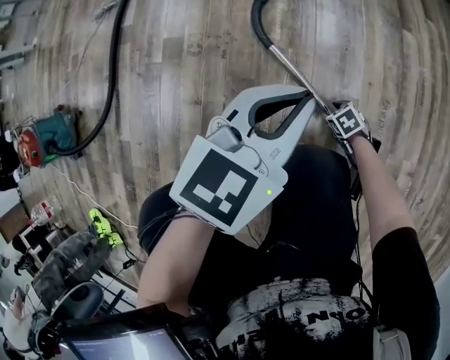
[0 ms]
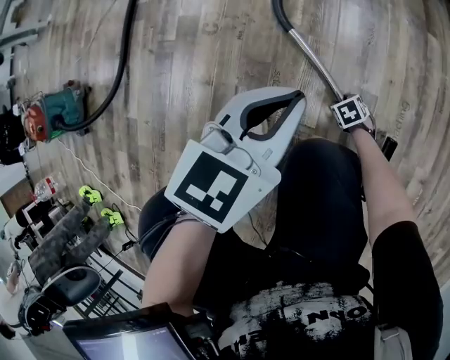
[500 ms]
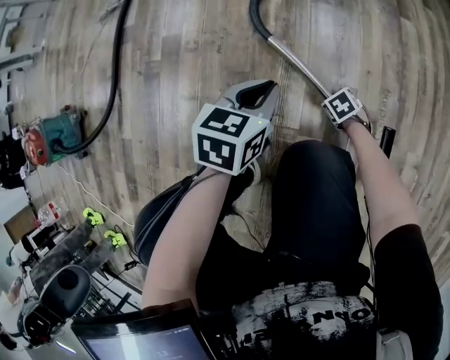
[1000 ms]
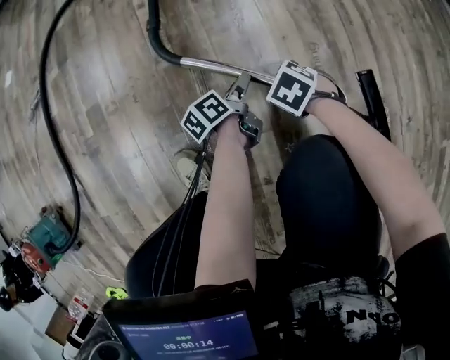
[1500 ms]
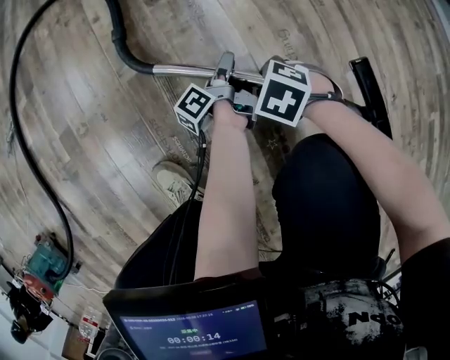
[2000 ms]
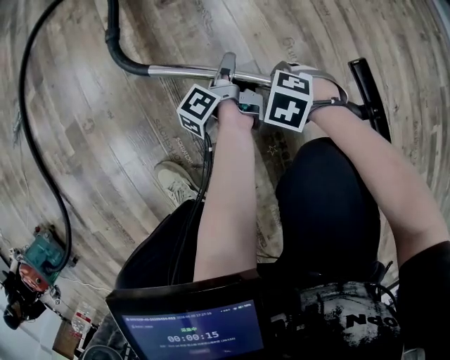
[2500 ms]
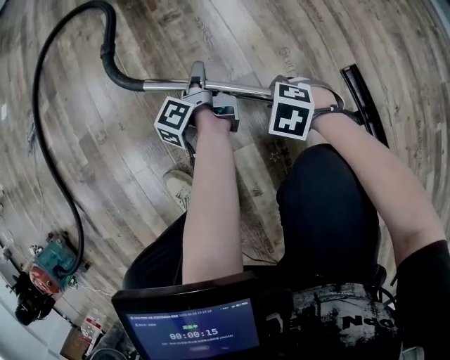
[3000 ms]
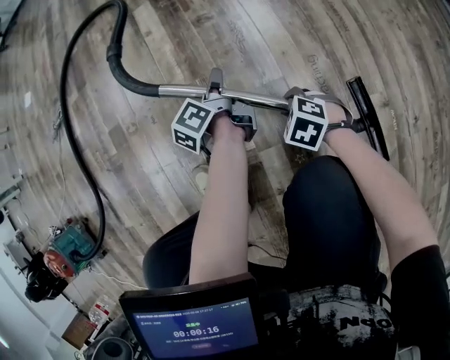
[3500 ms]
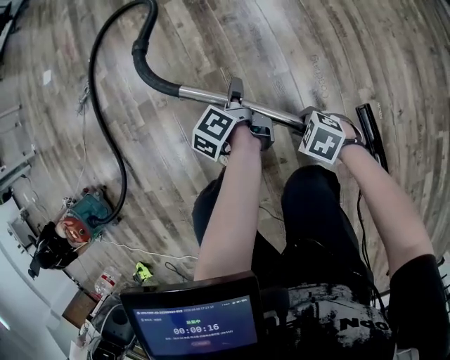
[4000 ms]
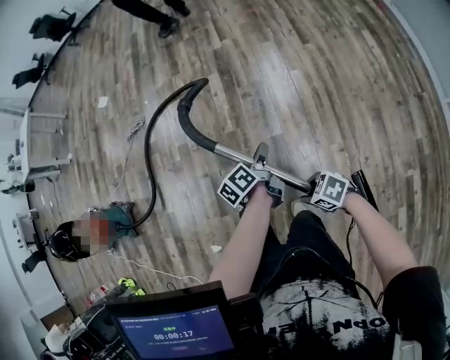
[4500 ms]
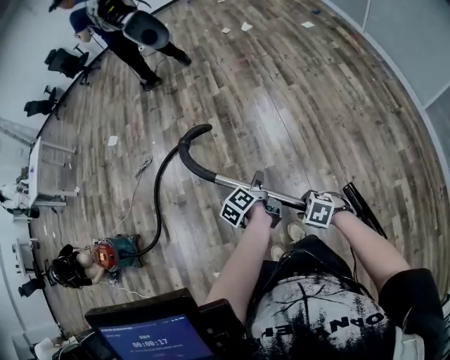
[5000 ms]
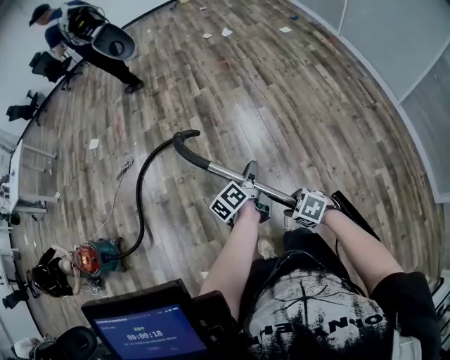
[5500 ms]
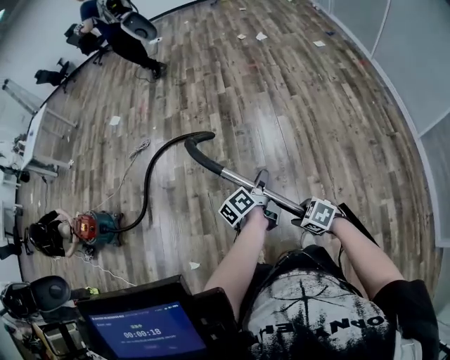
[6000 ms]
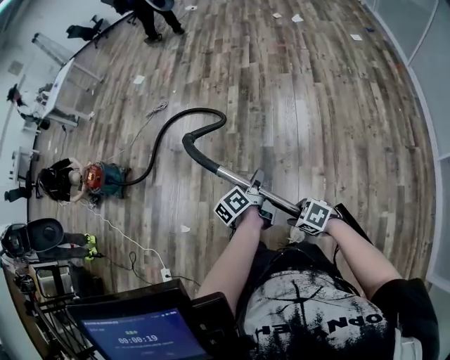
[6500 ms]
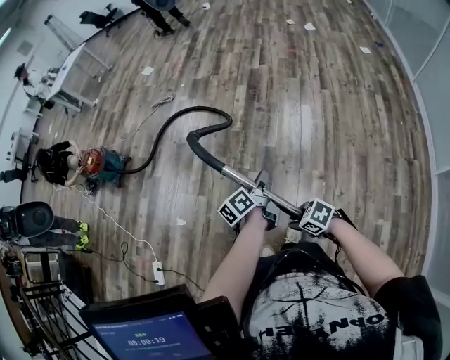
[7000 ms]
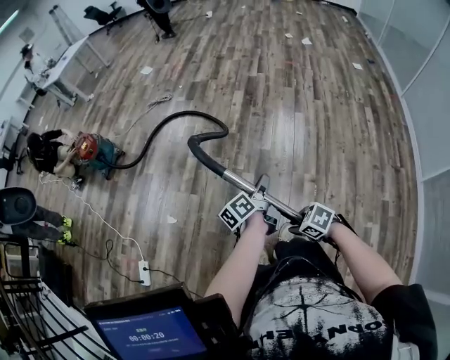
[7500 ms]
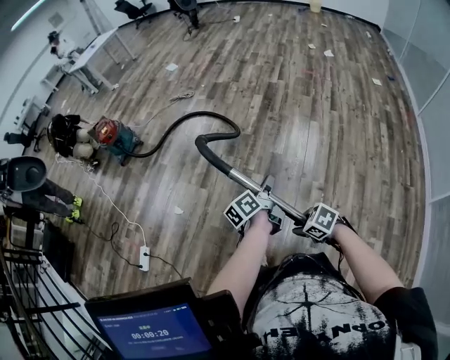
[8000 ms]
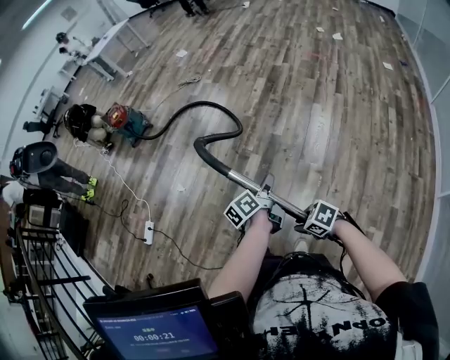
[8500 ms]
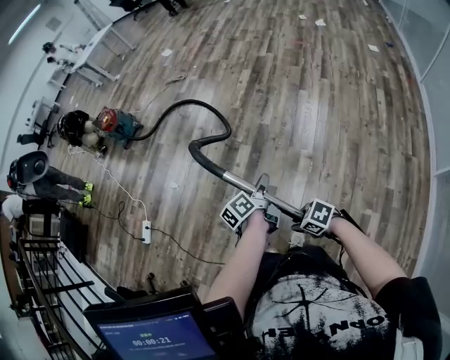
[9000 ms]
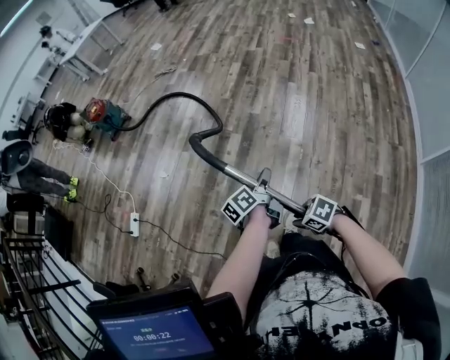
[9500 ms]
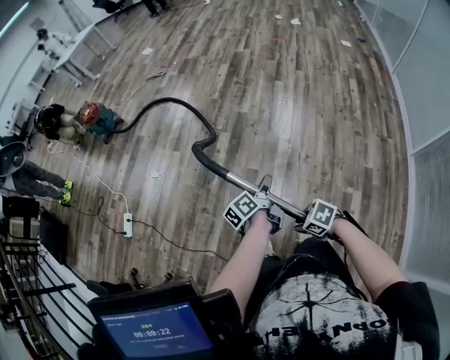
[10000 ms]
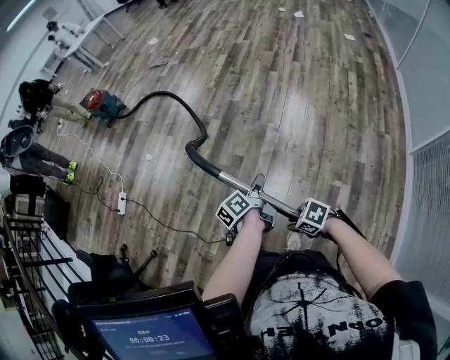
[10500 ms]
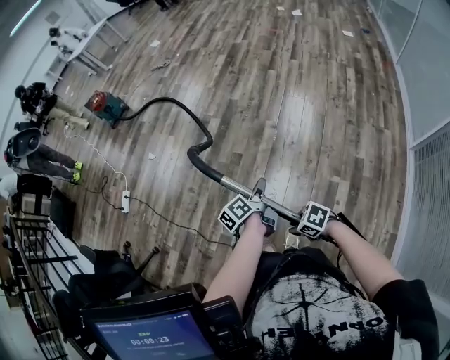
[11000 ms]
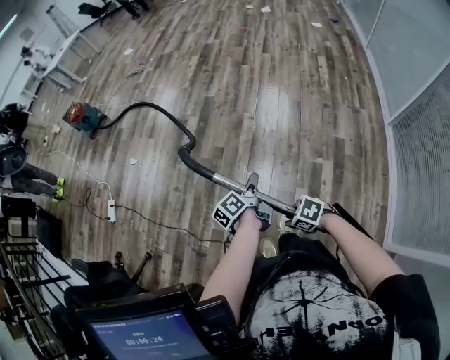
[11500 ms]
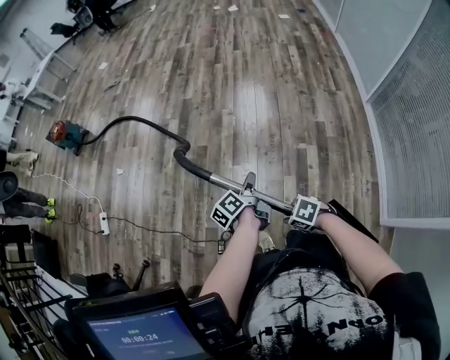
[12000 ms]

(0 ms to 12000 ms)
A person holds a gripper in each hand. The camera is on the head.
0 ms - 2000 ms: The right gripper travels upward by some 10 cm; the left gripper travels downward by about 35 cm, rolls counterclockwise, seen from behind, by about 90 degrees, and opens.
2000 ms - 4000 ms: Both grippers travel together upward, roughly 25 cm. The left gripper turns by about 30 degrees.
4000 ms - 6000 ms: The two grippers go some 40 cm upward.
6000 ms - 8000 ms: The right gripper changes place by some 20 cm, and turns by approximately 20 degrees. Meanwhile the left gripper changes place by roughly 25 cm, and turns by some 20 degrees.
8000 ms - 10000 ms: The left gripper ends up some 35 cm from where it was. The right gripper shifts by some 35 cm.
10000 ms - 12000 ms: The right gripper changes place by approximately 30 cm. Meanwhile the left gripper shifts by roughly 35 cm.

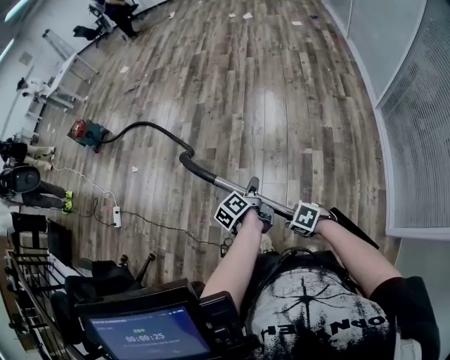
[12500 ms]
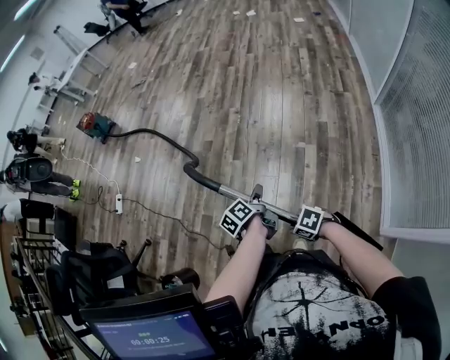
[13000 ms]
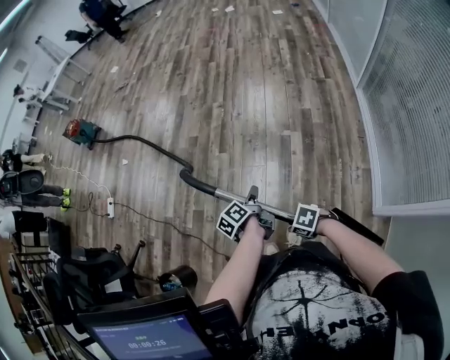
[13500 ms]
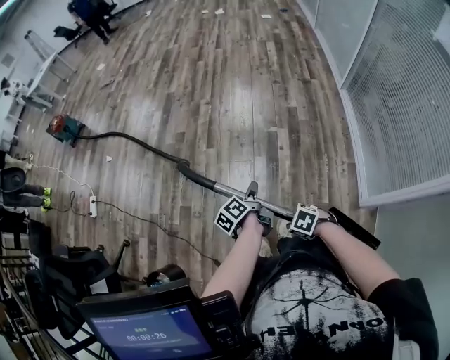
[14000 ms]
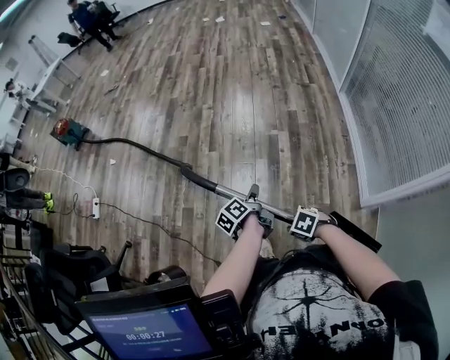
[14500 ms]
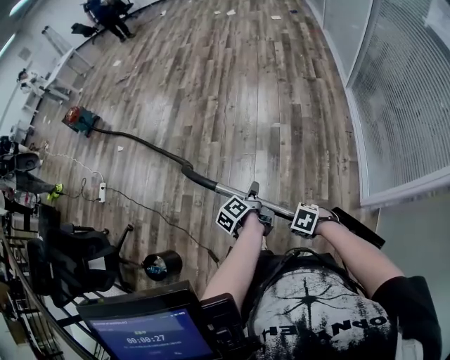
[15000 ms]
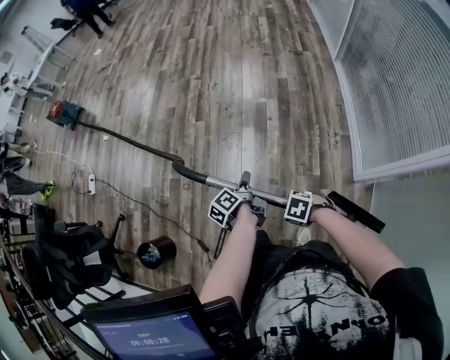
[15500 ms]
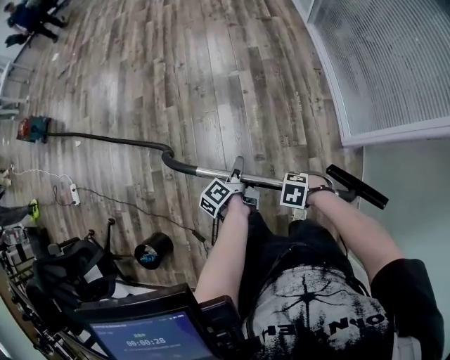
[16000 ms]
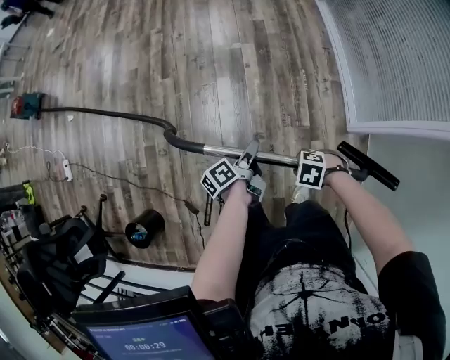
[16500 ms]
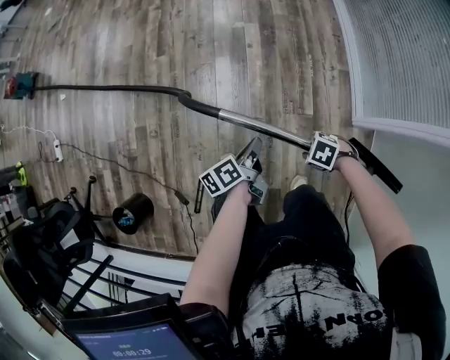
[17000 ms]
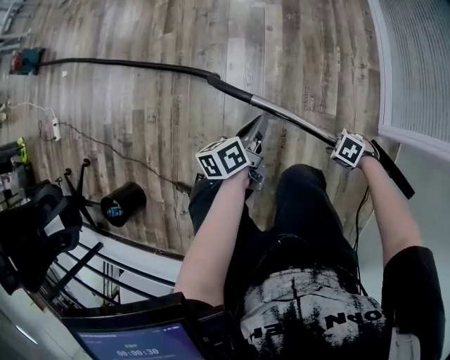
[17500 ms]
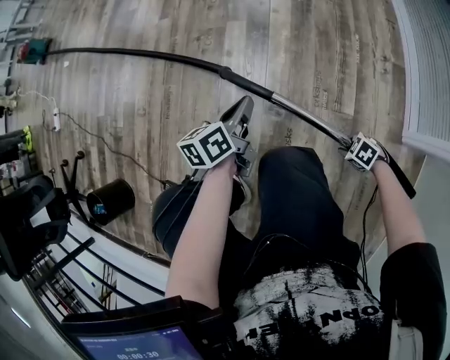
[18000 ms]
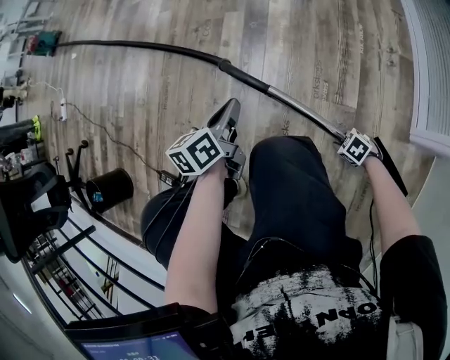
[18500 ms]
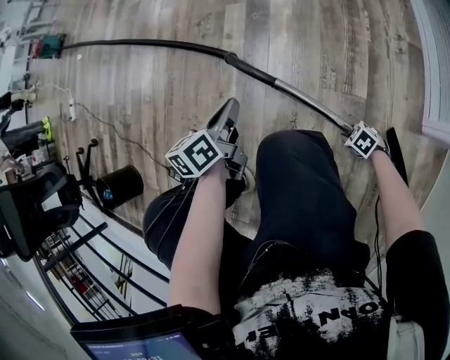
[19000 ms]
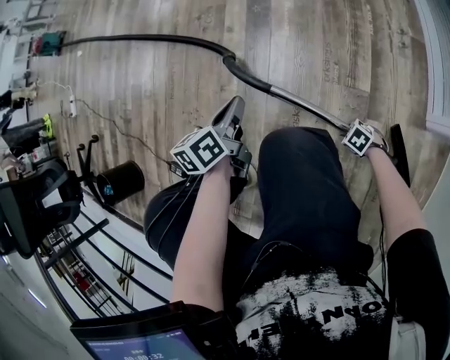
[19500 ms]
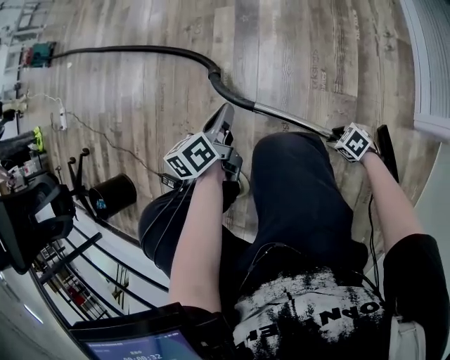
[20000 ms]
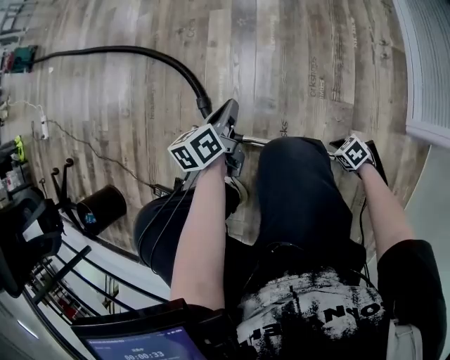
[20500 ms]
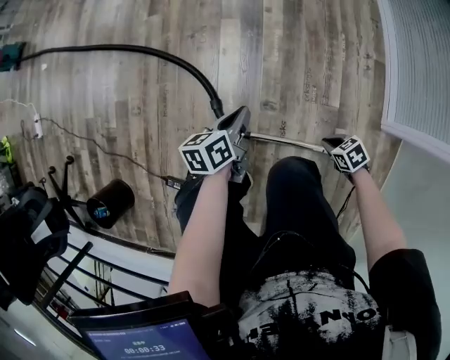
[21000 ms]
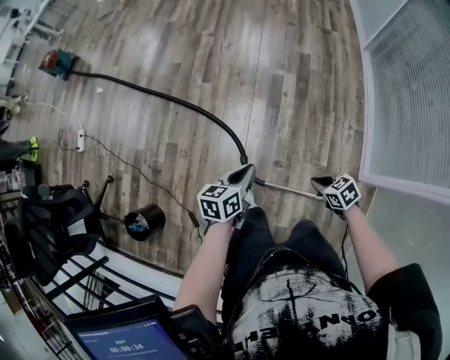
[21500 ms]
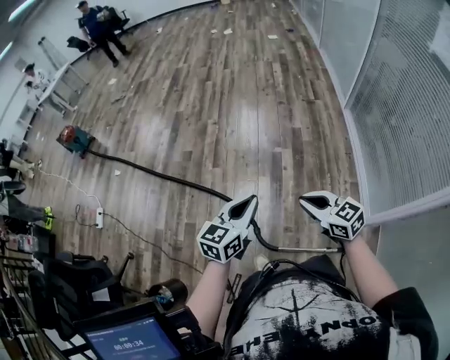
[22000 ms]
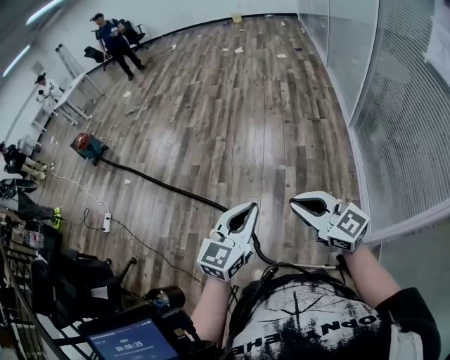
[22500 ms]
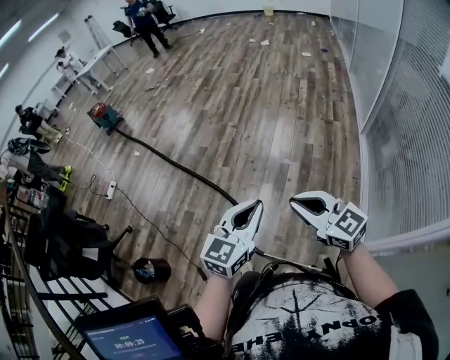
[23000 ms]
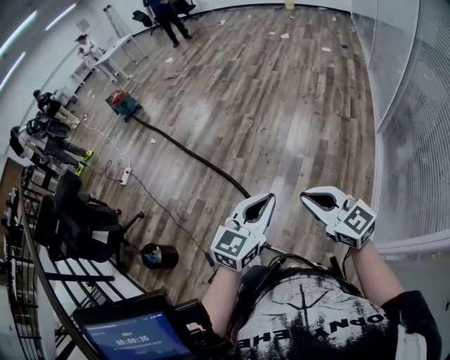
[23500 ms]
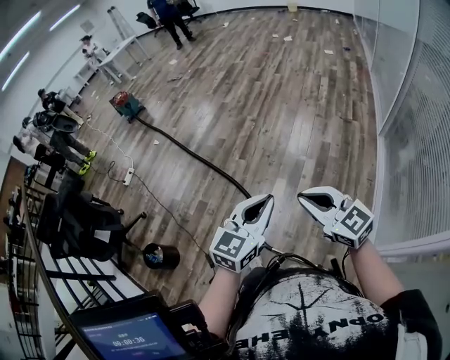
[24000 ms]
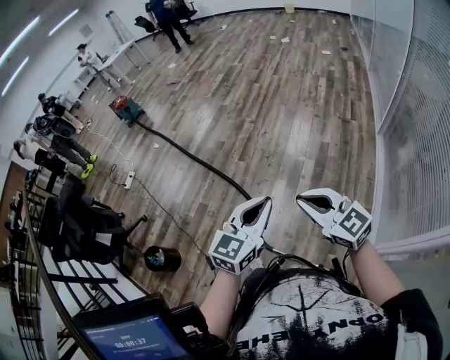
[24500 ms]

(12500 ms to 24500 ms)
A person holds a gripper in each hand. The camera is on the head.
12500 ms - 14500 ms: The right gripper moves roughly 30 cm; the left gripper shifts by about 30 cm.
14500 ms - 16500 ms: The right gripper changes place by some 25 cm, while the left gripper ends up approximately 20 cm from where it was, and opens its fingers.
16500 ms - 18500 ms: The right gripper moves downward, some 60 cm. The left gripper moves downward, approximately 30 cm, rotates roughly 40 degrees, and closes its fingers.
18500 ms - 20500 ms: The right gripper opens, then closes again. The left gripper is displaced downward by about 5 cm.
20500 ms - 22500 ms: The grippers both shift upward by some 90 cm. The right gripper angles its fingers upward, by some 60 degrees. The left gripper twists roughly 50 degrees clockwise, seen from behind.
22500 ms - 24500 ms: The grippers both shift backward and to the right by some 10 cm.

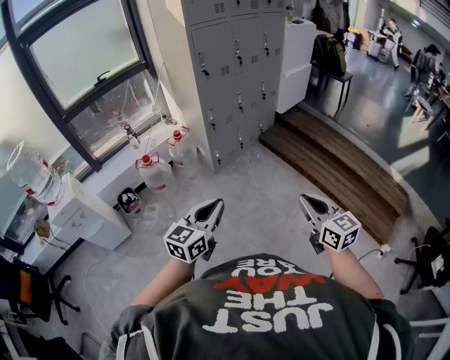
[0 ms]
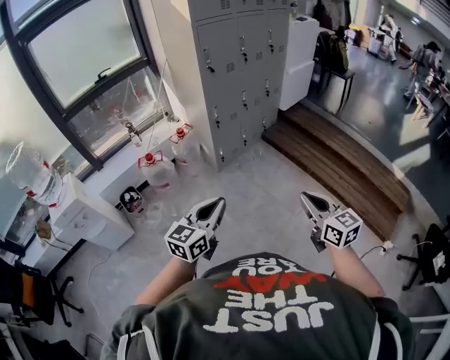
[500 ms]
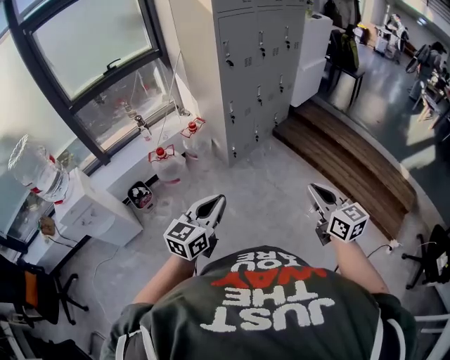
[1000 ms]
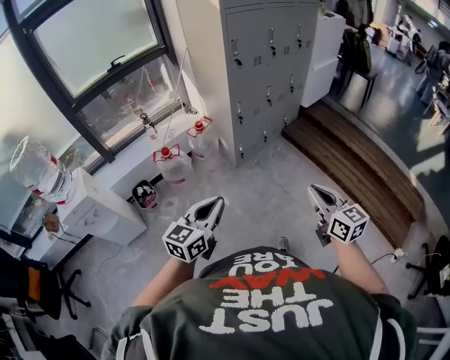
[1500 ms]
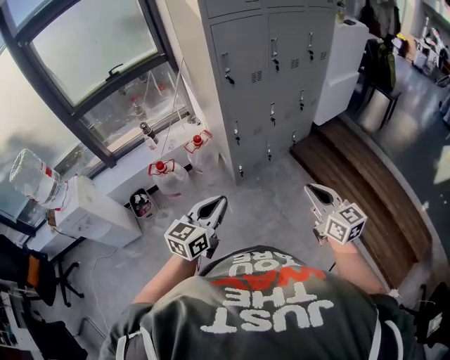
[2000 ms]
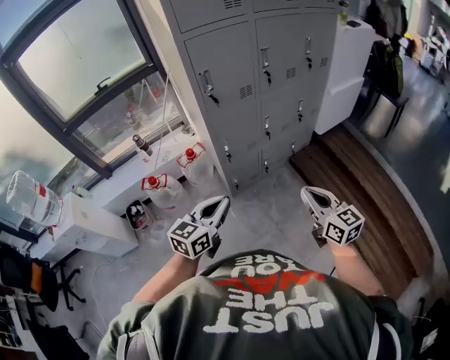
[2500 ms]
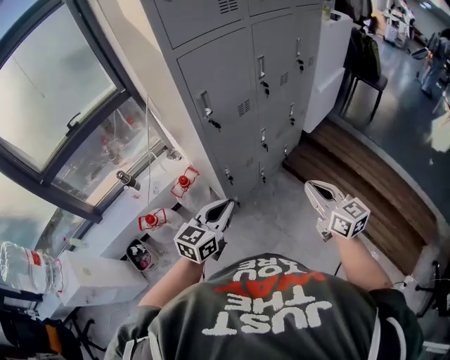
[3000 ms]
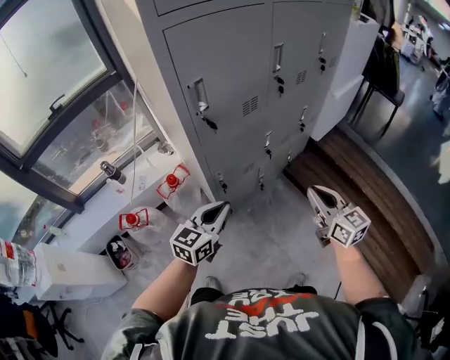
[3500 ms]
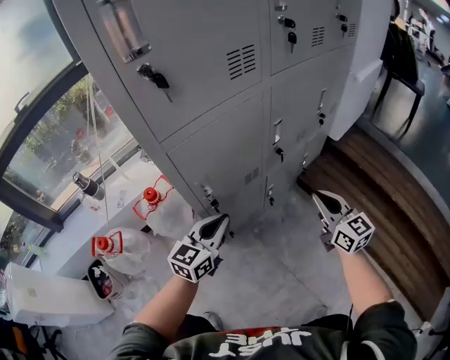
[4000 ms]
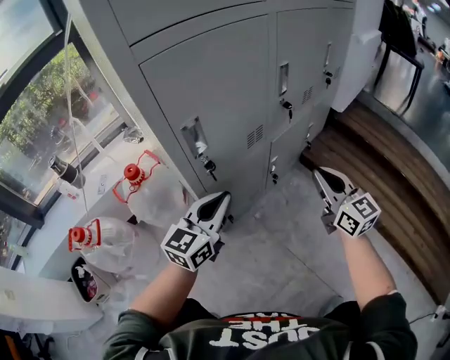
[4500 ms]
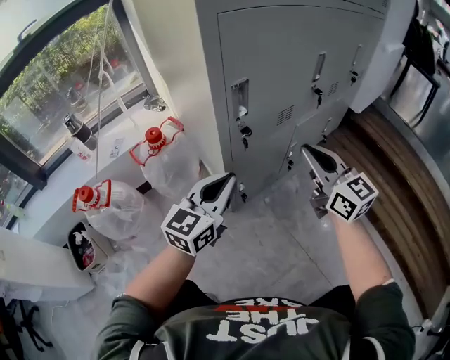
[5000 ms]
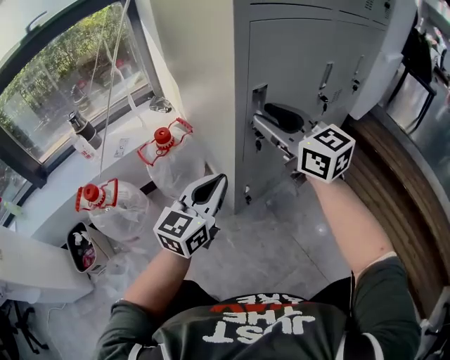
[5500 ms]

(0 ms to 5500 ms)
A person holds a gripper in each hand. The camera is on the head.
0 ms - 2000 ms: The two grippers go about 30 cm forward.
2000 ms - 3500 ms: The grippers both shift forward by about 40 cm.
3500 ms - 5500 ms: The right gripper moves to the left, downward and forward, approximately 40 cm, swivels approximately 20 degrees, and opens up; the left gripper moves downward, some 35 cm.
